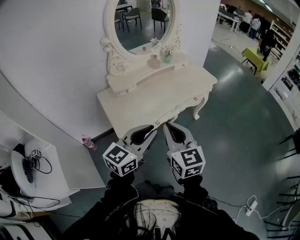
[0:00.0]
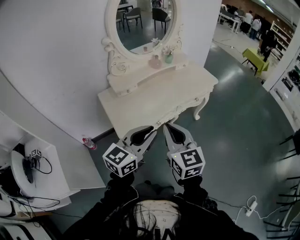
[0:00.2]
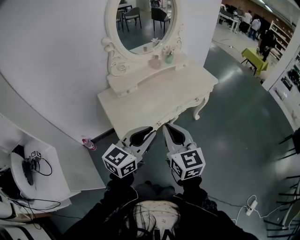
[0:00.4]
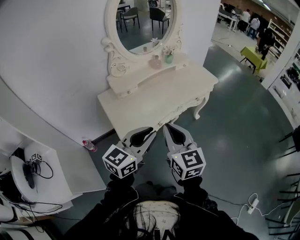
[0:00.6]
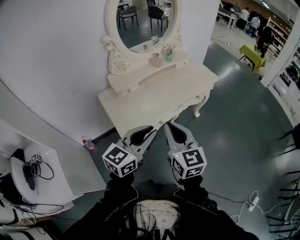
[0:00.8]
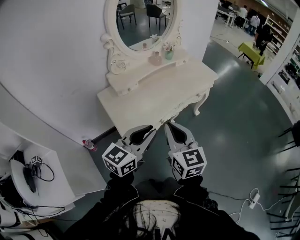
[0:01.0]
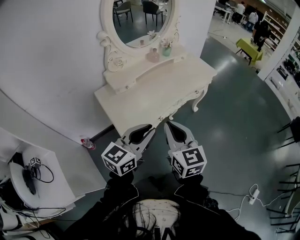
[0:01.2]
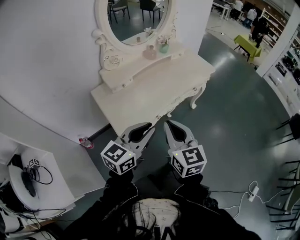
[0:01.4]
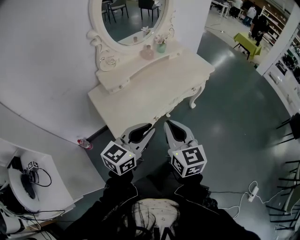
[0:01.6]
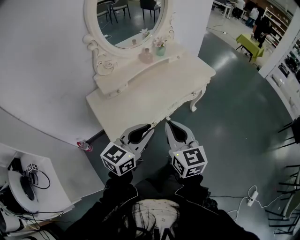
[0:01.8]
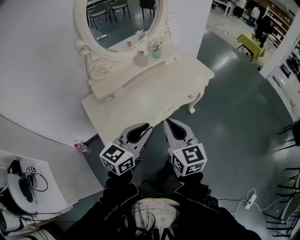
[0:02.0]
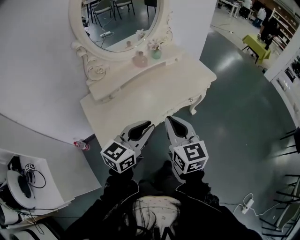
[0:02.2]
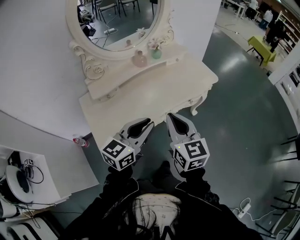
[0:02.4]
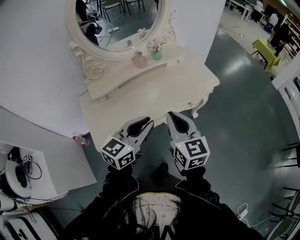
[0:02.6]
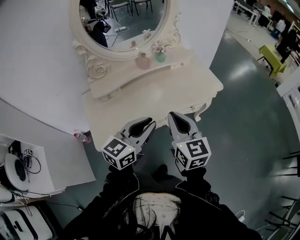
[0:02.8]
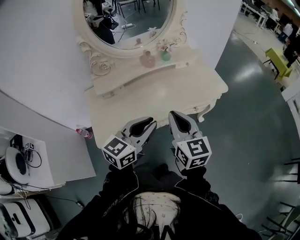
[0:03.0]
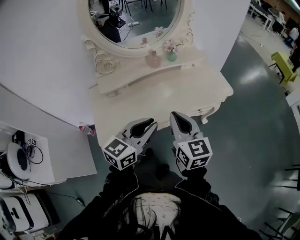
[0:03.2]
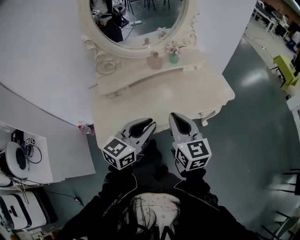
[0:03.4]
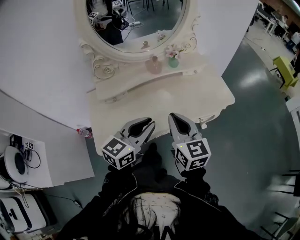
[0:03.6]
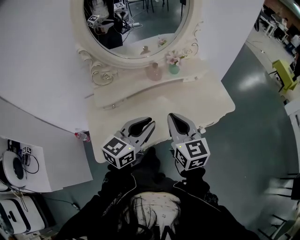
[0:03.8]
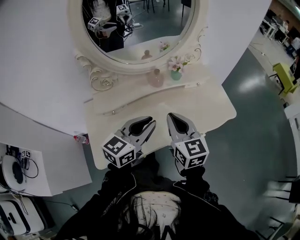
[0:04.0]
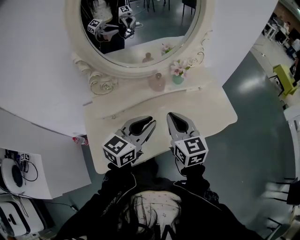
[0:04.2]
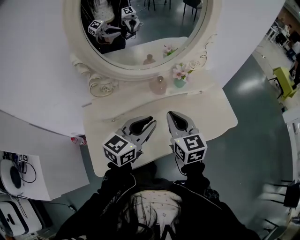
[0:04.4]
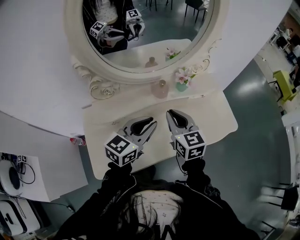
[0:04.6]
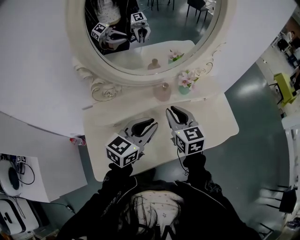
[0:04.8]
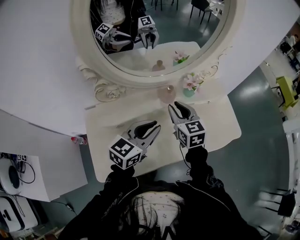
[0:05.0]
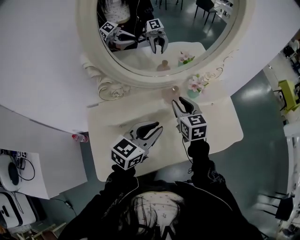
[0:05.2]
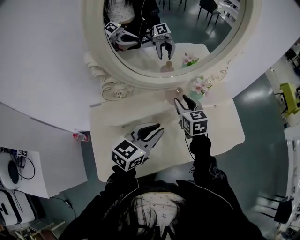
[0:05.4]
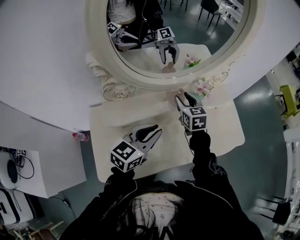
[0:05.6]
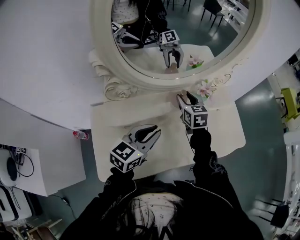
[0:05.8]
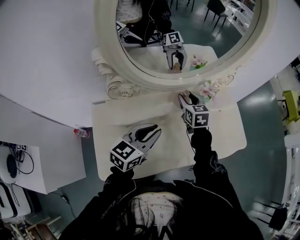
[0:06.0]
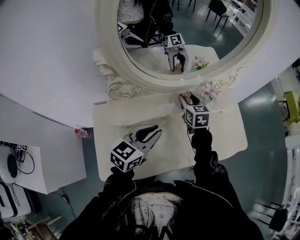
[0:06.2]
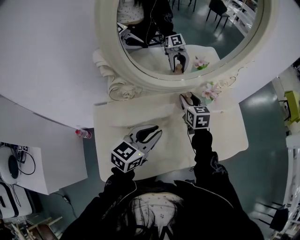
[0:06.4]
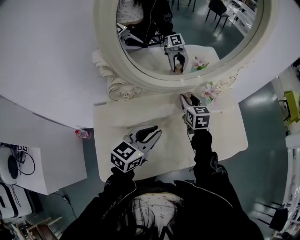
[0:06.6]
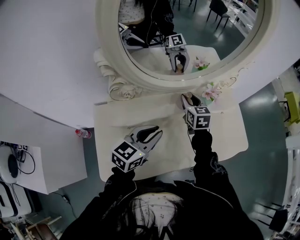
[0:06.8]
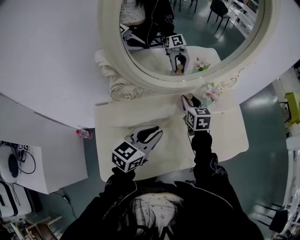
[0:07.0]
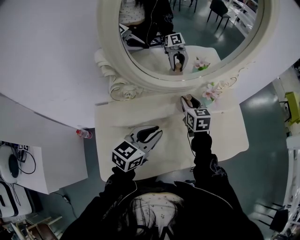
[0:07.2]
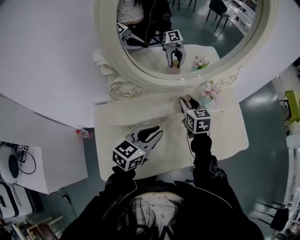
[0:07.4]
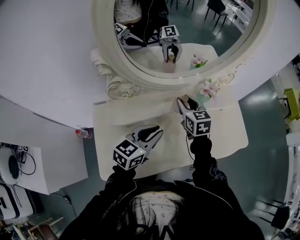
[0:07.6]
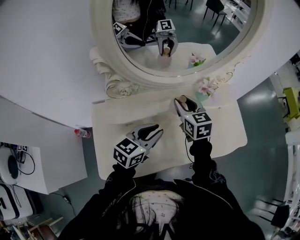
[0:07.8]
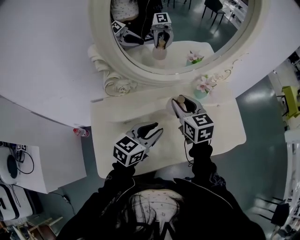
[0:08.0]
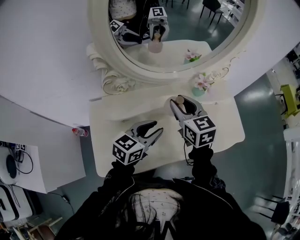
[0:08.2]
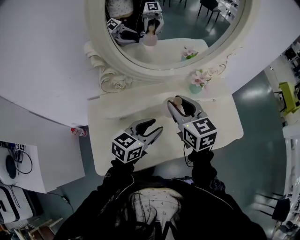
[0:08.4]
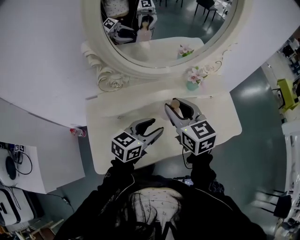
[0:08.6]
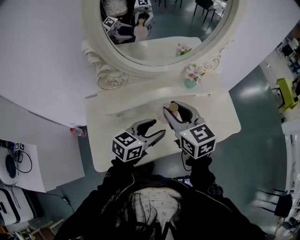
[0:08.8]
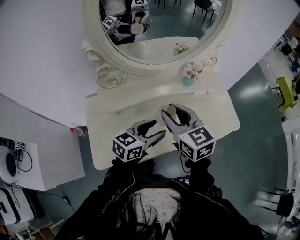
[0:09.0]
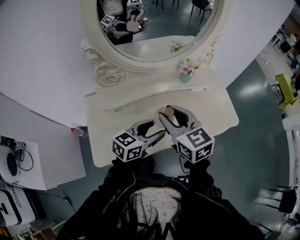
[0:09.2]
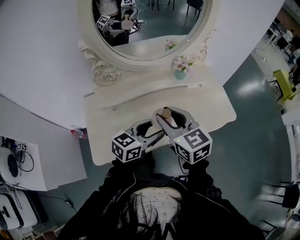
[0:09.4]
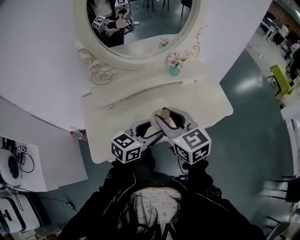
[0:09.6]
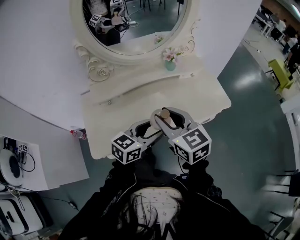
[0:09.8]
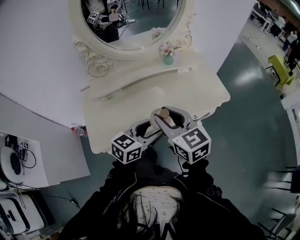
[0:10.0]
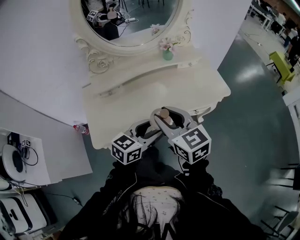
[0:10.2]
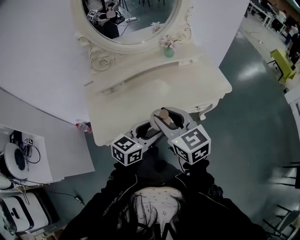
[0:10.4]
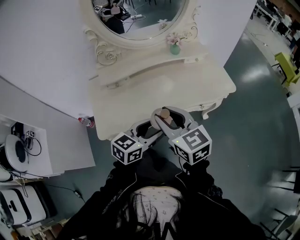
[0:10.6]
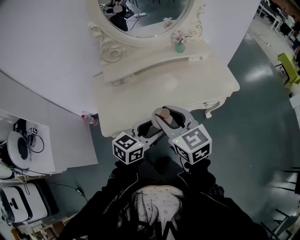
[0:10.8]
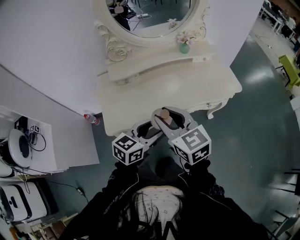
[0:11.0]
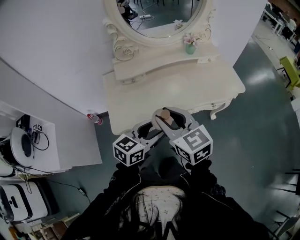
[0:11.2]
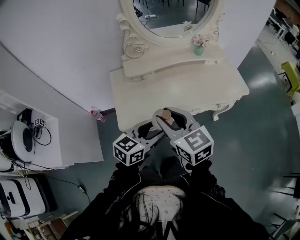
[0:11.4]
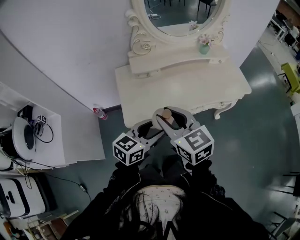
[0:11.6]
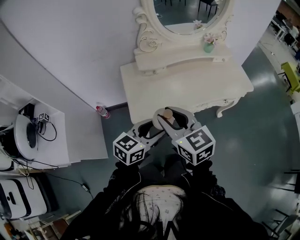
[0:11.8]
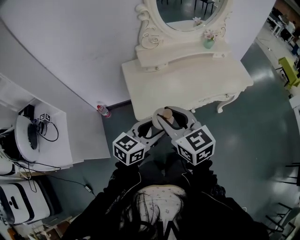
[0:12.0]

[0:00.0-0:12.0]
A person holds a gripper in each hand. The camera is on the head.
0:00.0 to 0:01.6: The right gripper moves approximately 5 cm. Meanwhile the left gripper ends up roughly 5 cm from where it was.
0:01.6 to 0:03.0: Both grippers travel together forward and to the right, about 20 cm.
0:03.0 to 0:04.4: The two grippers go some 20 cm forward.
0:04.4 to 0:06.0: The right gripper shifts some 20 cm forward and downward, and opens. The left gripper shifts about 5 cm to the left.
0:06.0 to 0:07.6: There are only small adjustments of the grippers.
0:07.6 to 0:09.0: The left gripper travels to the right and backward by some 10 cm, and opens. Meanwhile the right gripper shifts roughly 20 cm backward and upward.
0:09.0 to 0:10.4: Both grippers travel together backward, some 20 cm.
0:10.4 to 0:12.0: Both grippers travel together to the left and backward, some 25 cm.

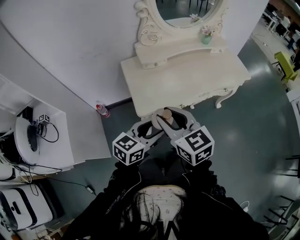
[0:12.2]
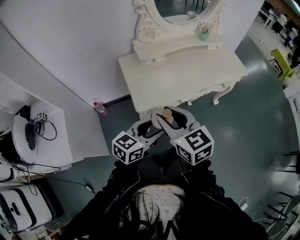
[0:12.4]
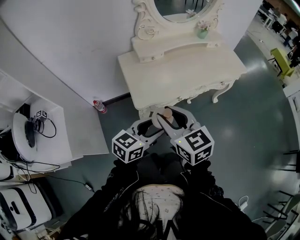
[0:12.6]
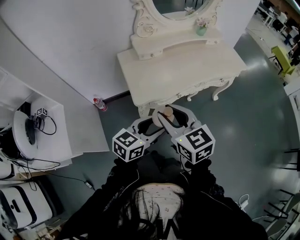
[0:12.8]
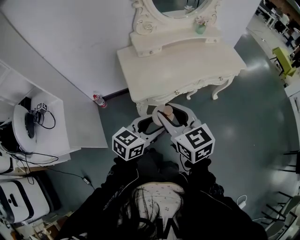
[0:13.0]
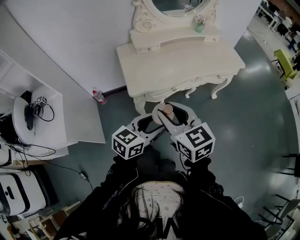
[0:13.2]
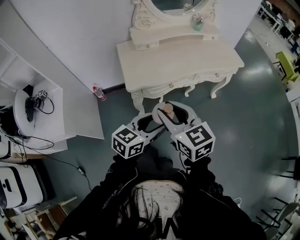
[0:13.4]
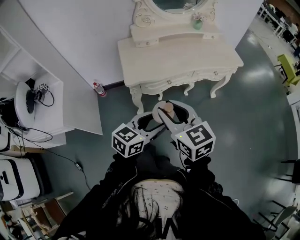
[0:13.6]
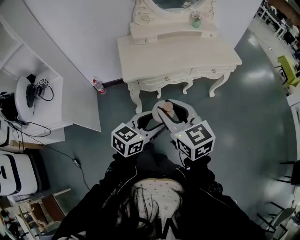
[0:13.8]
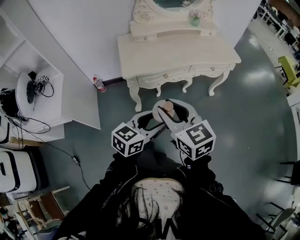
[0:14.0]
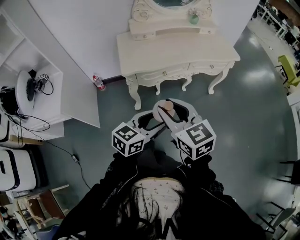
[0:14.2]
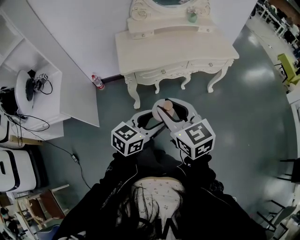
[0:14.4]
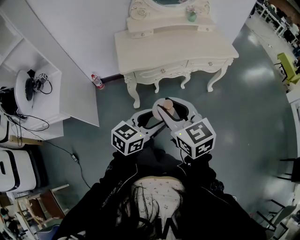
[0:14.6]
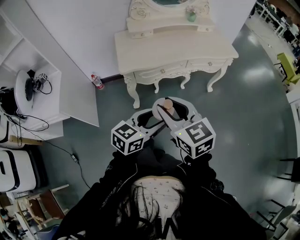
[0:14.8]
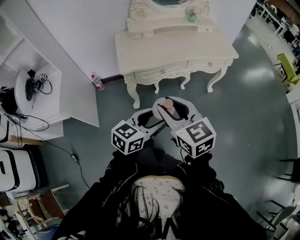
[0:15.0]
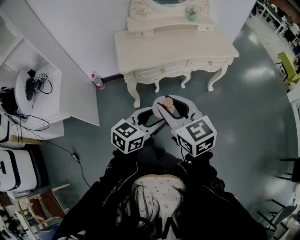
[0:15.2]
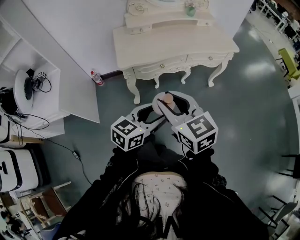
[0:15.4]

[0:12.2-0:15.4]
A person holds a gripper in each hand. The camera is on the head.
0:12.2 to 0:13.8: The two grippers go approximately 20 cm backward and to the right.
0:13.8 to 0:15.4: The grippers make only small movements.

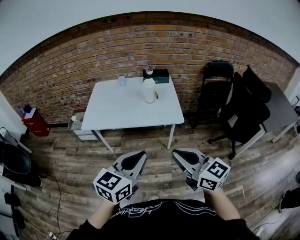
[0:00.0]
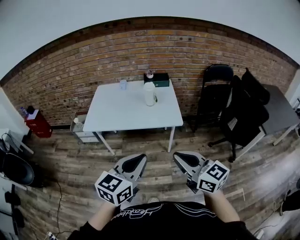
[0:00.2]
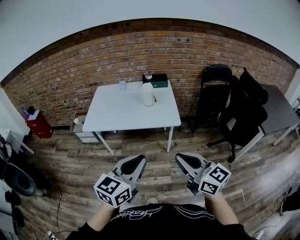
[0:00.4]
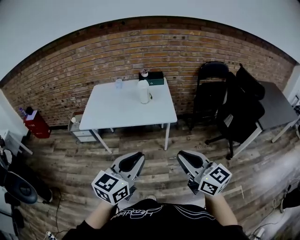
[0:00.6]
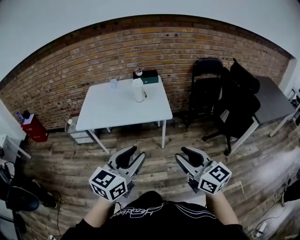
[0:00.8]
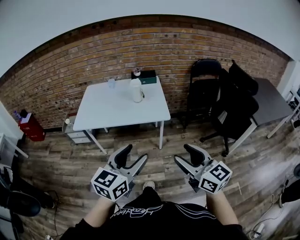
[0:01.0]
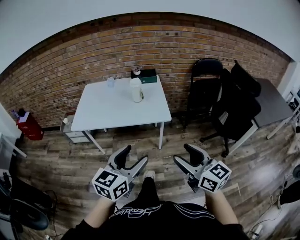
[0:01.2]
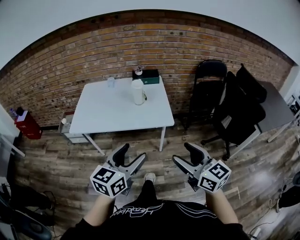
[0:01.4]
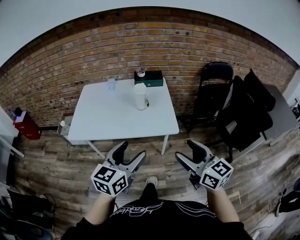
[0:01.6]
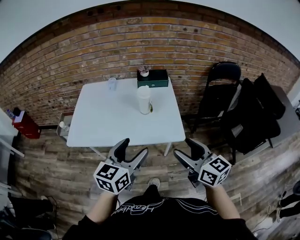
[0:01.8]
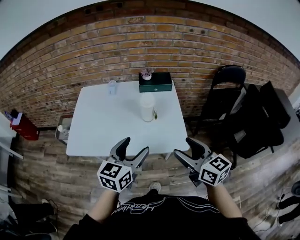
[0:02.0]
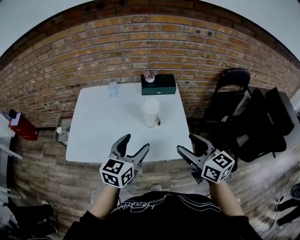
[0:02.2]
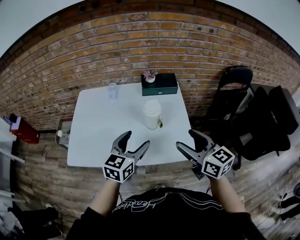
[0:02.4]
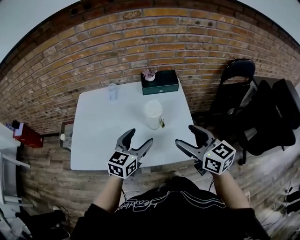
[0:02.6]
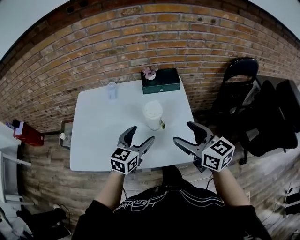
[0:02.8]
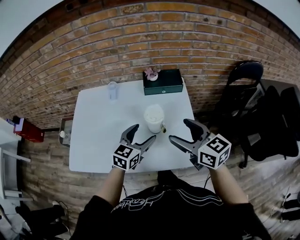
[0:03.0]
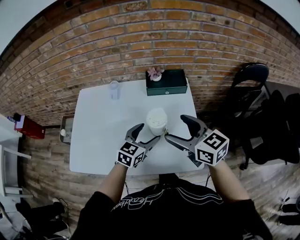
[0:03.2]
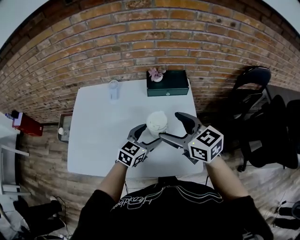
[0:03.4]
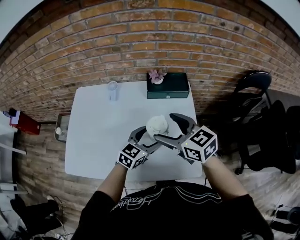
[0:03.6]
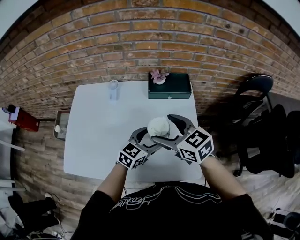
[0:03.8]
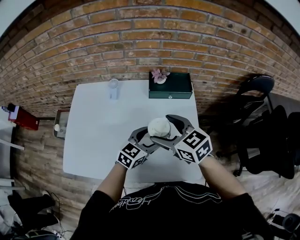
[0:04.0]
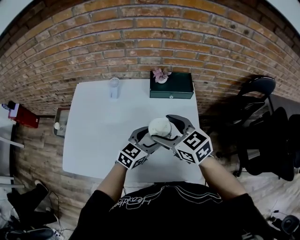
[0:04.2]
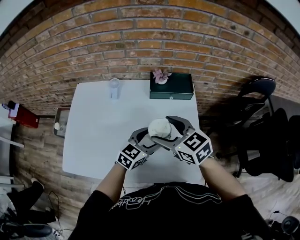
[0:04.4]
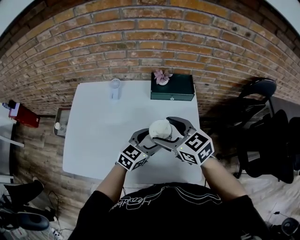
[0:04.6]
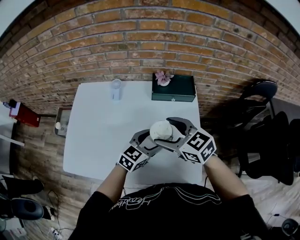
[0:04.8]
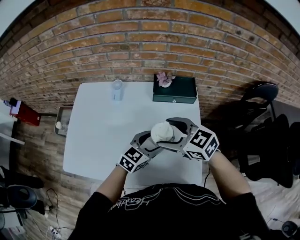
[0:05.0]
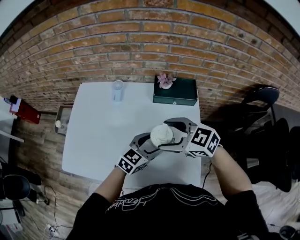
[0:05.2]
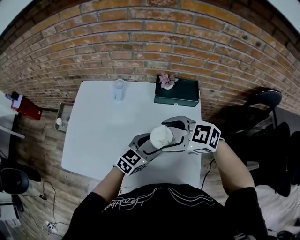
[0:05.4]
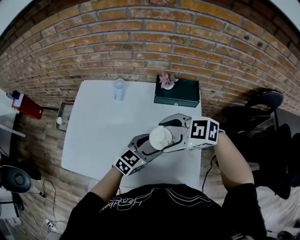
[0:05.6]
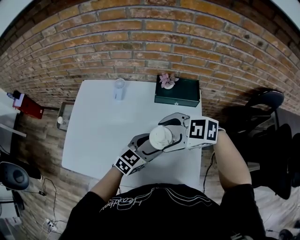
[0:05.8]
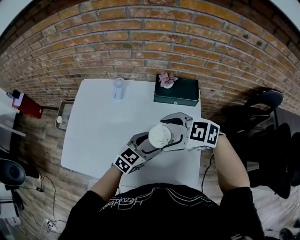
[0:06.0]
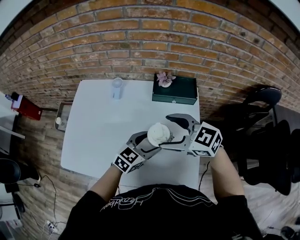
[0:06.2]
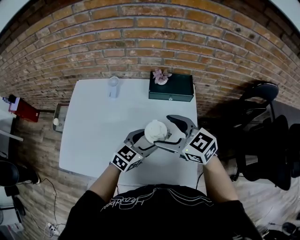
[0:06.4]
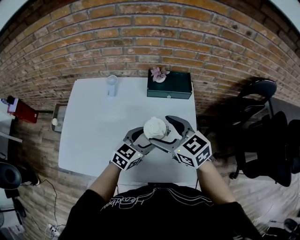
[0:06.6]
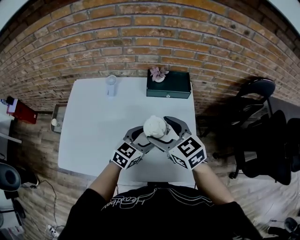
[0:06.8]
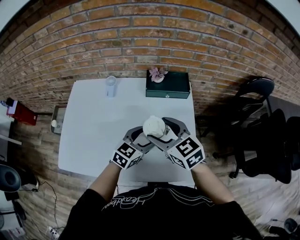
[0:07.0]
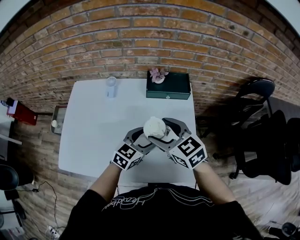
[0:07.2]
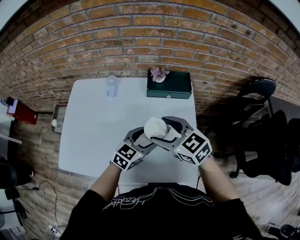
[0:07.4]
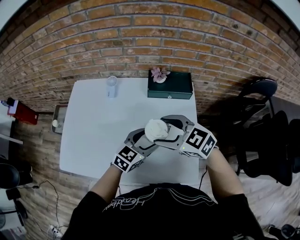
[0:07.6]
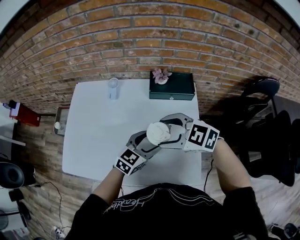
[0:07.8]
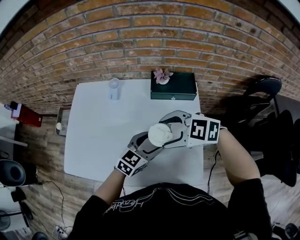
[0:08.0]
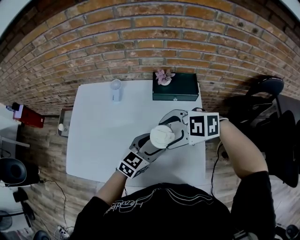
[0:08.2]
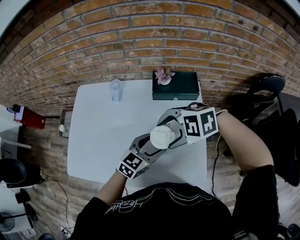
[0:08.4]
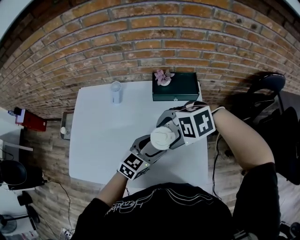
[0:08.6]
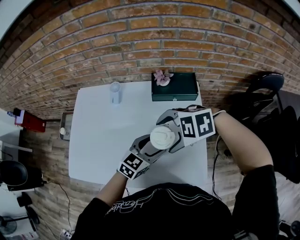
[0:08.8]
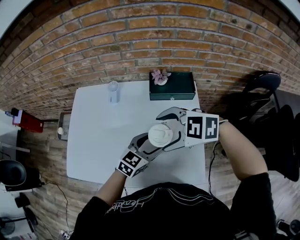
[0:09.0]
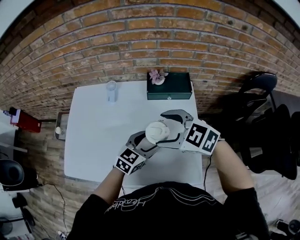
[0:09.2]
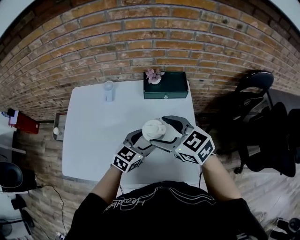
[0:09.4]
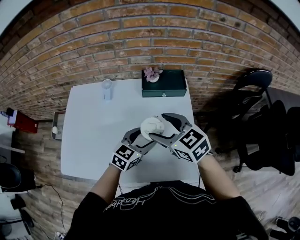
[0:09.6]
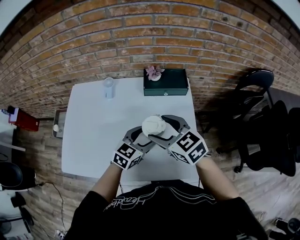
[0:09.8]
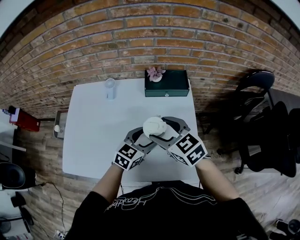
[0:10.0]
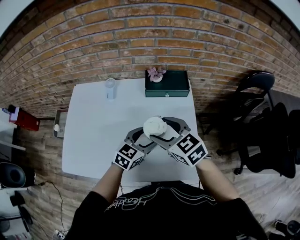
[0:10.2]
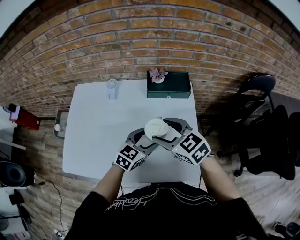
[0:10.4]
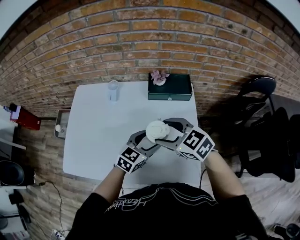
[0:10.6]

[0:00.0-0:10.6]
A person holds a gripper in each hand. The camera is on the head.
0:00.0 to 0:01.6: The right gripper goes about 15 cm forward and to the right, and opens its fingers. Meanwhile the left gripper goes some 15 cm forward, and opens up.
0:01.6 to 0:03.0: Both grippers travel together forward, some 35 cm.
0:03.0 to 0:04.6: The left gripper changes place by about 10 cm. Meanwhile the right gripper heads forward and to the left, covering approximately 15 cm, and turns by roughly 20 degrees.
0:04.6 to 0:06.0: The right gripper changes its angle by some 40 degrees.
0:06.0 to 0:07.6: The right gripper rotates about 20 degrees.
0:07.6 to 0:09.0: The right gripper rotates approximately 30 degrees.
0:09.0 to 0:10.6: The right gripper swivels some 40 degrees.
